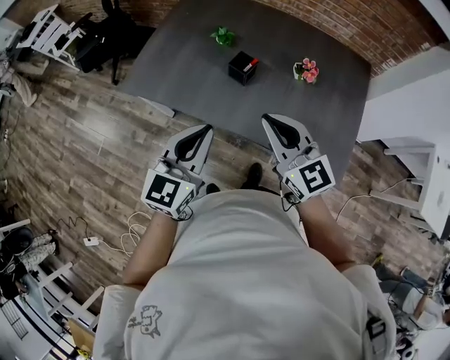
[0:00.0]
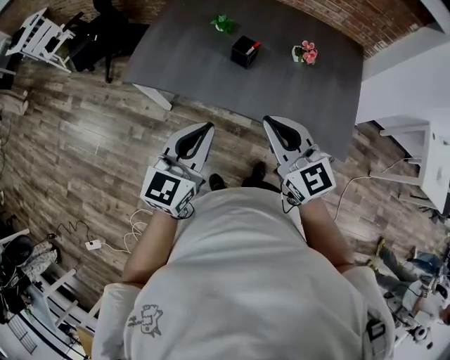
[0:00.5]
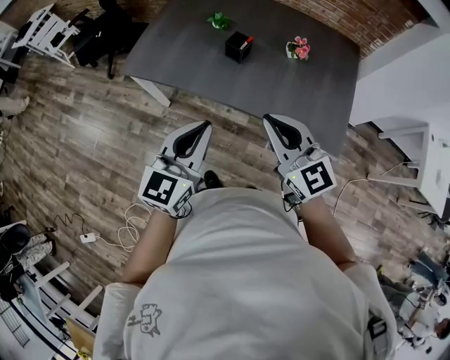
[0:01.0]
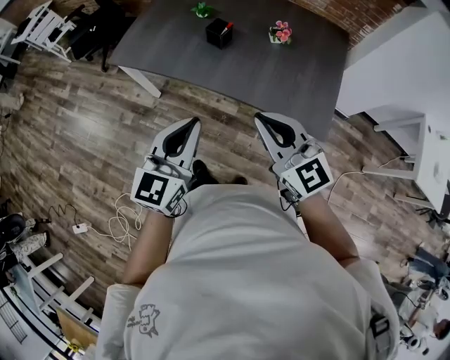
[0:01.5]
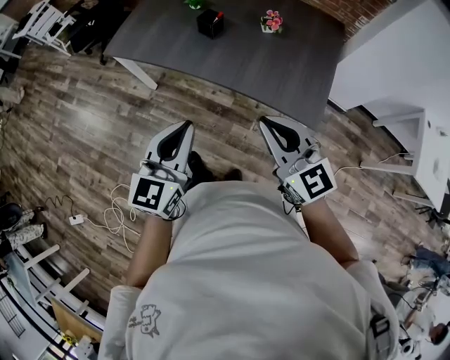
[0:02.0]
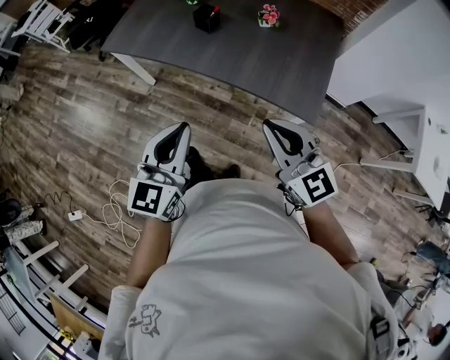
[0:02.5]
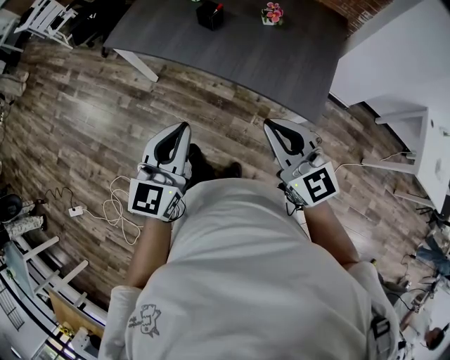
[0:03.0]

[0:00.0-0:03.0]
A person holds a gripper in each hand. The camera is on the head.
0:00.0 to 0:01.5: Both grippers move backward, about 20 cm.
0:01.5 to 0:03.0: The left gripper heads backward, covering some 10 cm; the right gripper shifts about 10 cm backward and to the right.

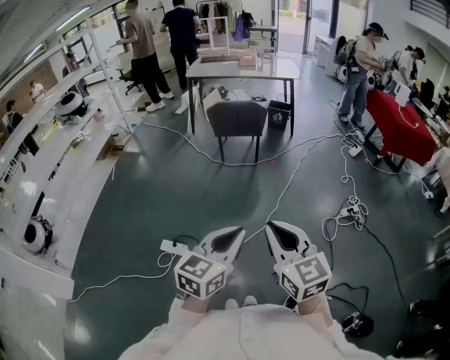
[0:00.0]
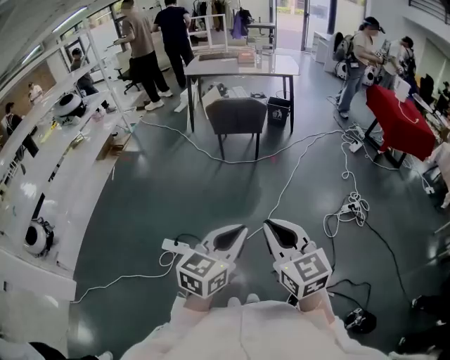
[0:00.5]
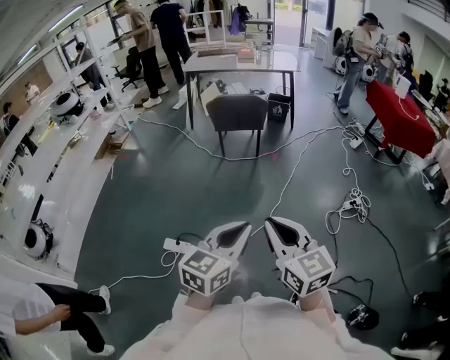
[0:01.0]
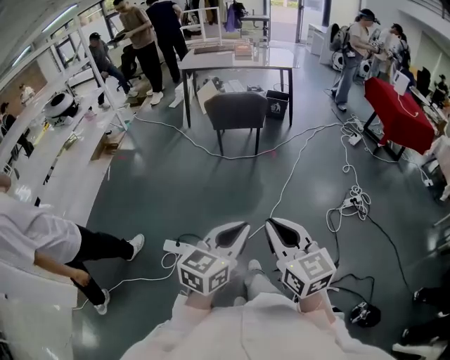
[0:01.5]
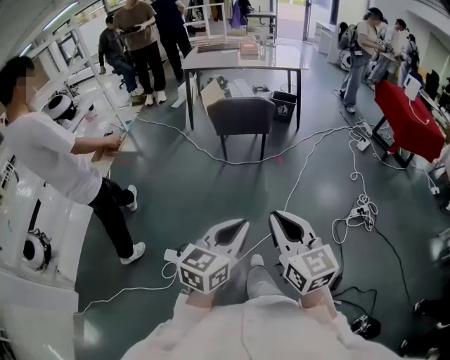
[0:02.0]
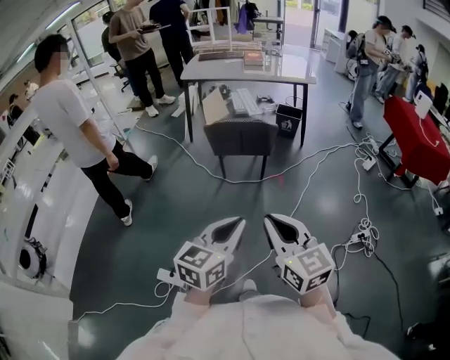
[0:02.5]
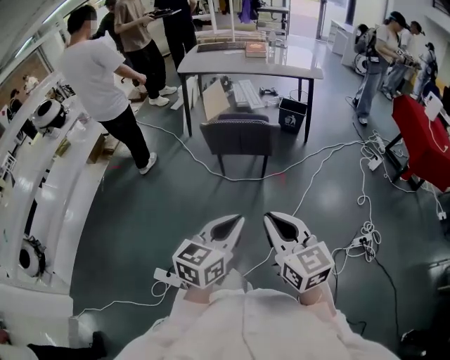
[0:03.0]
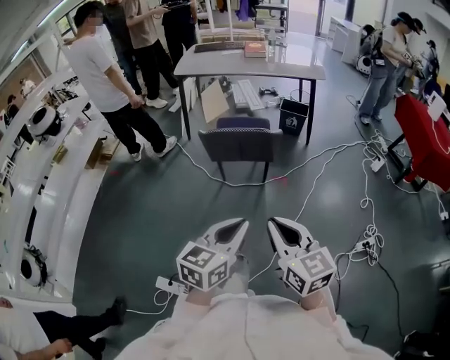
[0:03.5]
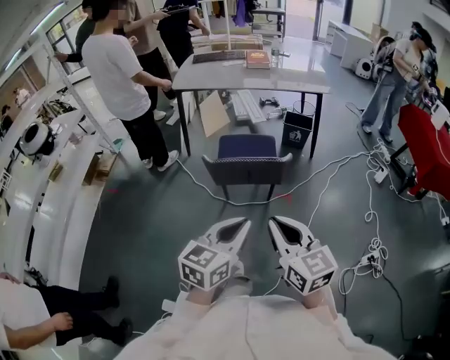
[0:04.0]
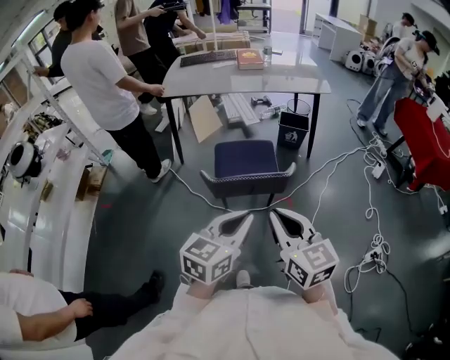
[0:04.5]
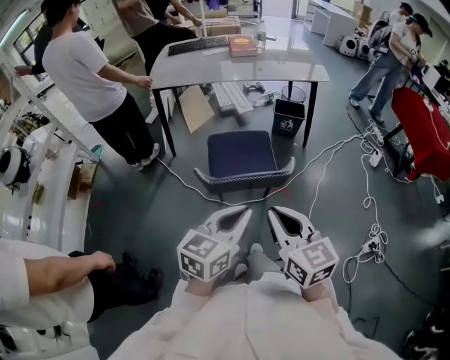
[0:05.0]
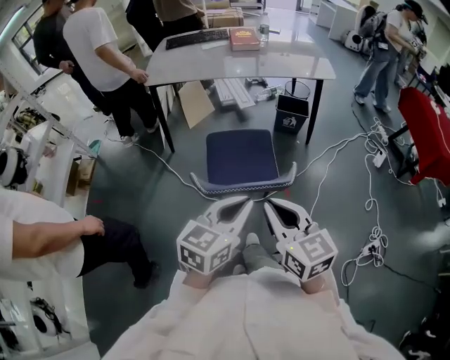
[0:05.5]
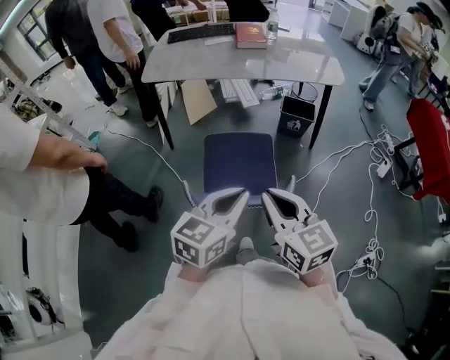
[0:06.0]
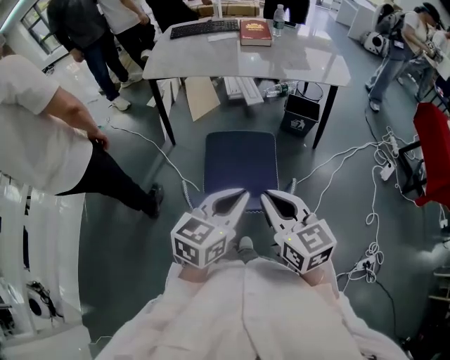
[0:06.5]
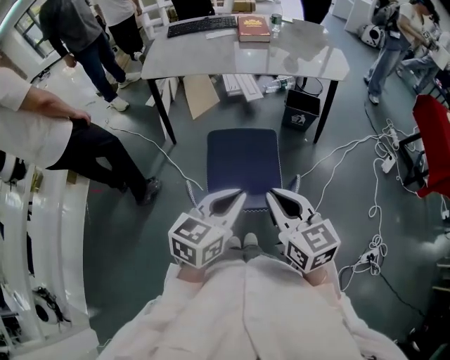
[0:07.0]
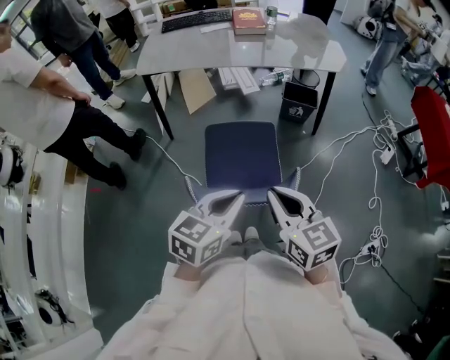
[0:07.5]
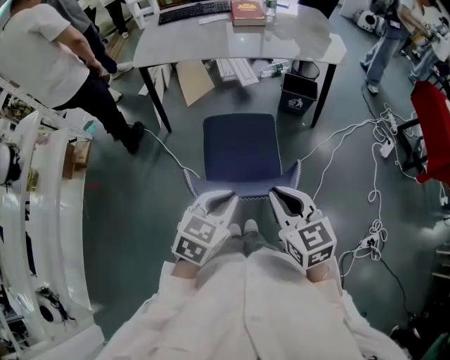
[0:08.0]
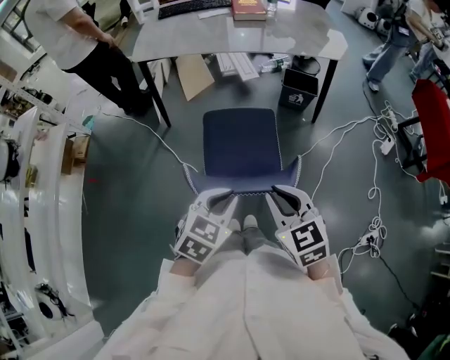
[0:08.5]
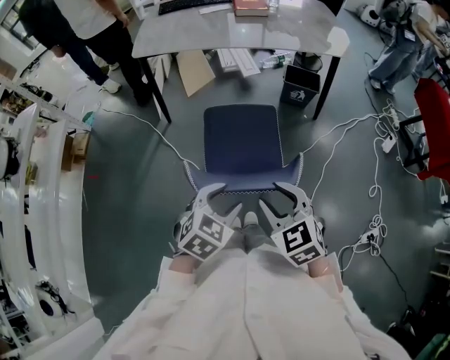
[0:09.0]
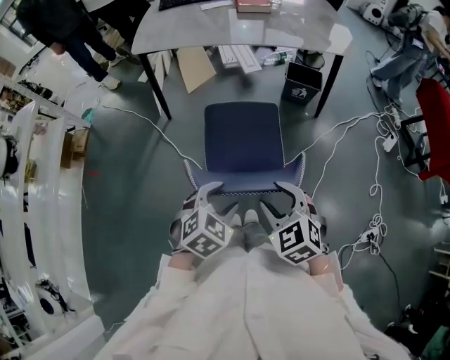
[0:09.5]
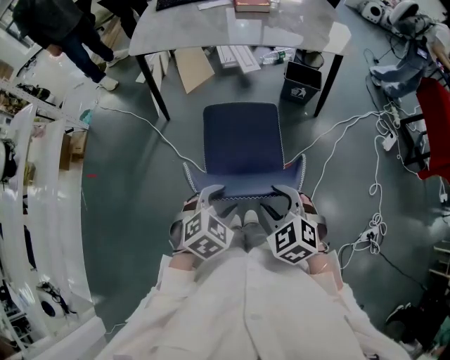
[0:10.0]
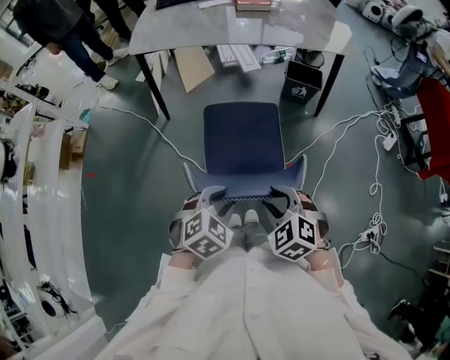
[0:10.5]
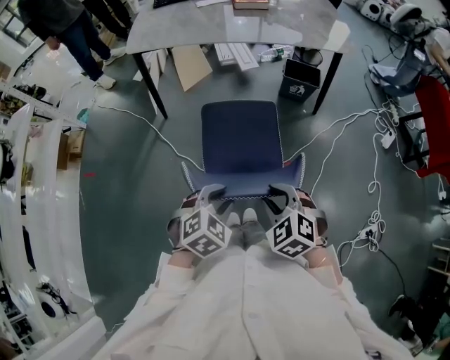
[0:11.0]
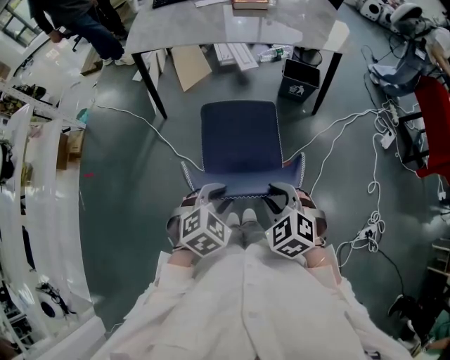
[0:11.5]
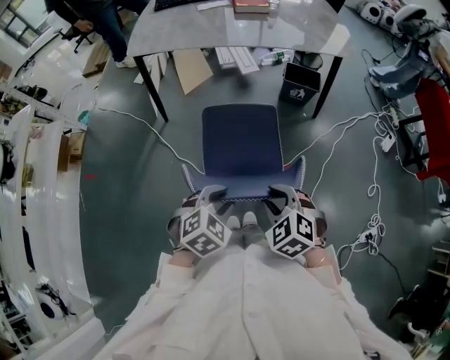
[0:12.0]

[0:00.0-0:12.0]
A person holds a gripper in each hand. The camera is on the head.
0:00.0 to 0:02.0: The two grippers go approximately 15 cm forward.
0:02.0 to 0:04.0: Both grippers are carried forward, roughly 50 cm.
0:04.0 to 0:06.0: The grippers both shift forward by approximately 35 cm.
0:06.0 to 0:08.0: The grippers both shift downward by some 5 cm. The left gripper turns by some 20 degrees.
0:08.0 to 0:10.0: Both grippers move downward, roughly 10 cm. The right gripper swivels approximately 40 degrees, and opens its fingers. Meanwhile the left gripper changes its angle by about 30 degrees, and opens its fingers.
0:10.0 to 0:12.0: The grippers stay close to where they were, moving slightly.

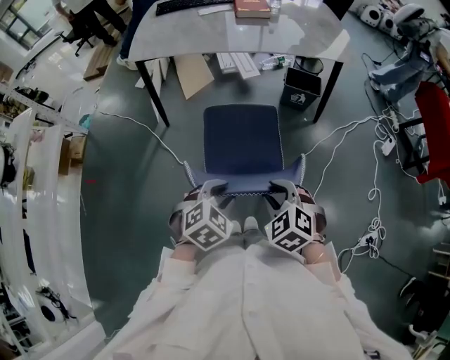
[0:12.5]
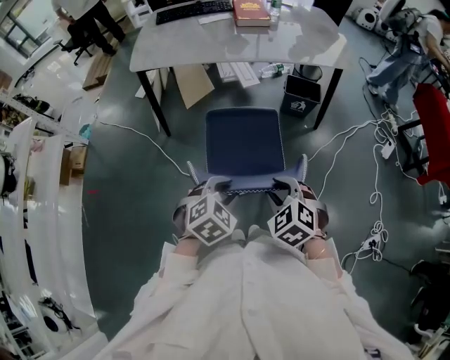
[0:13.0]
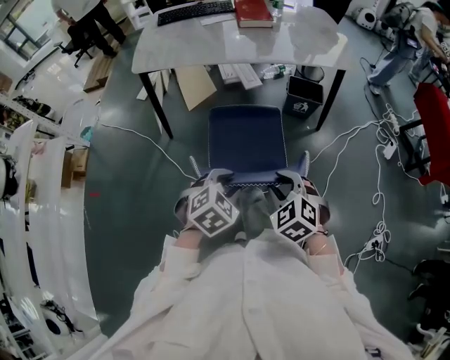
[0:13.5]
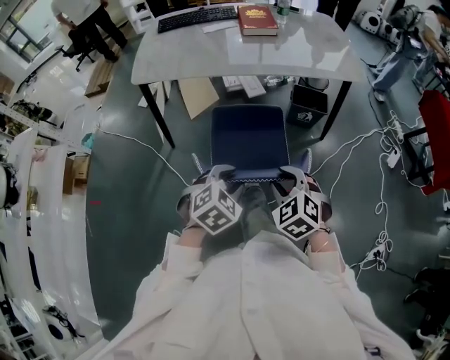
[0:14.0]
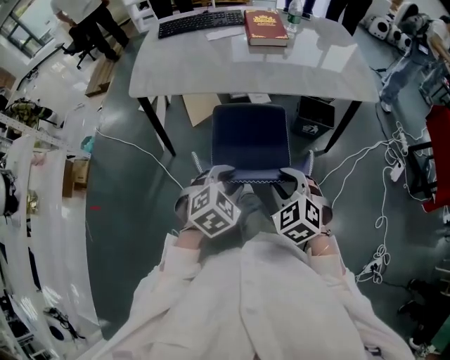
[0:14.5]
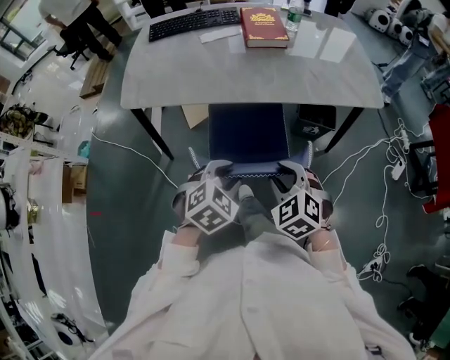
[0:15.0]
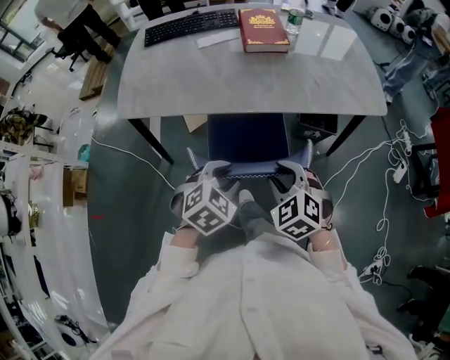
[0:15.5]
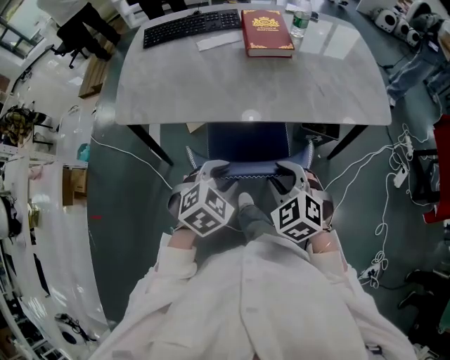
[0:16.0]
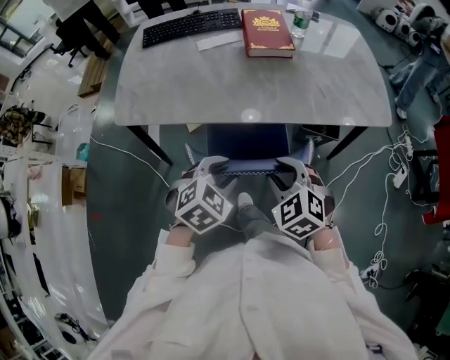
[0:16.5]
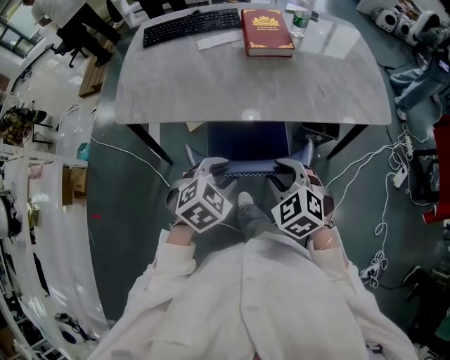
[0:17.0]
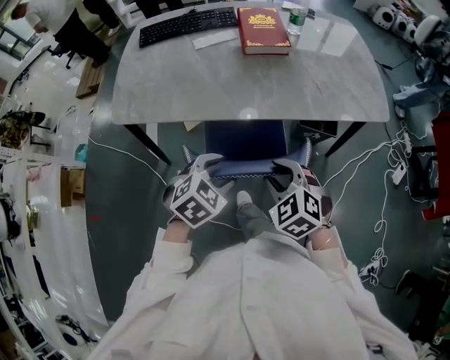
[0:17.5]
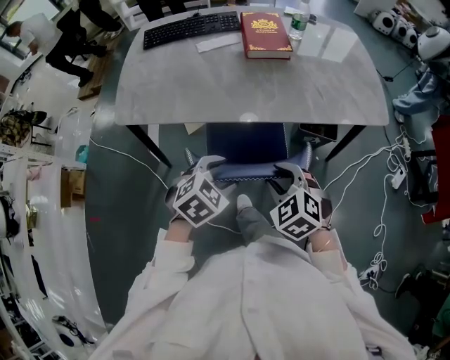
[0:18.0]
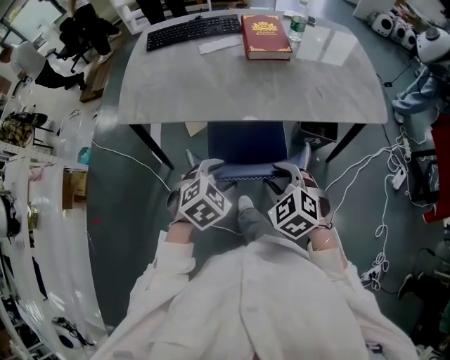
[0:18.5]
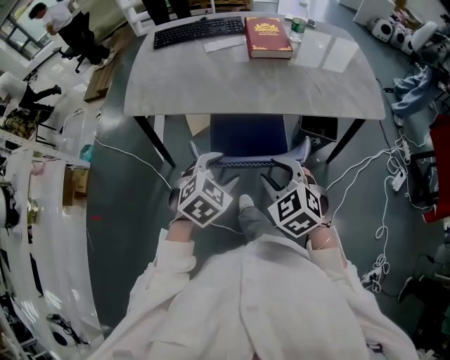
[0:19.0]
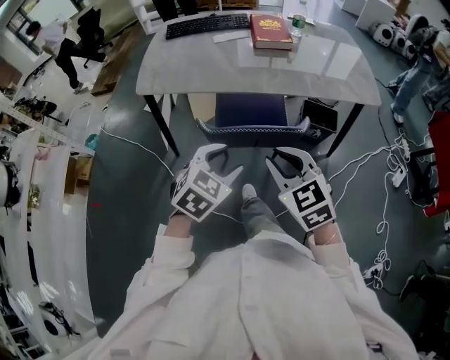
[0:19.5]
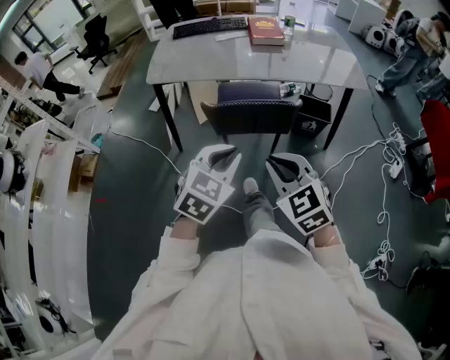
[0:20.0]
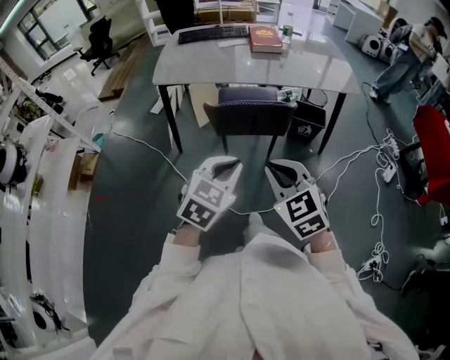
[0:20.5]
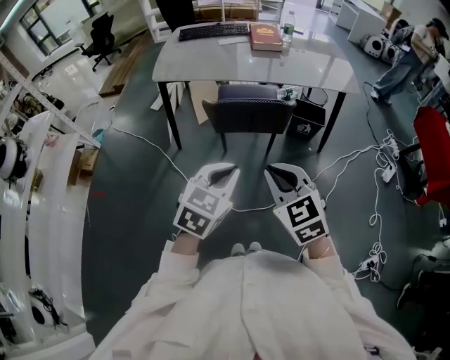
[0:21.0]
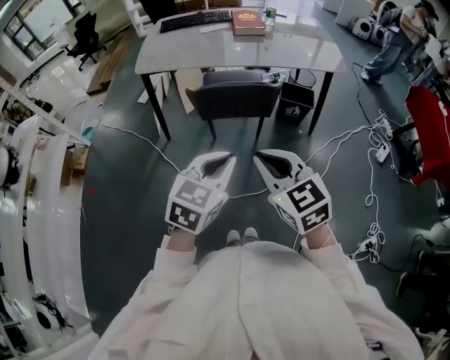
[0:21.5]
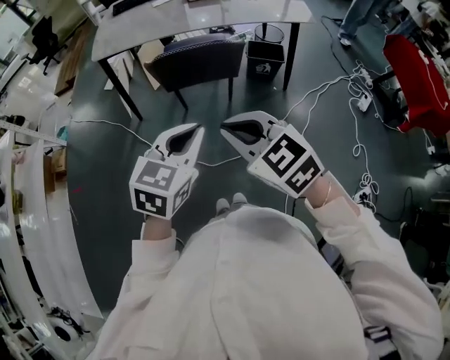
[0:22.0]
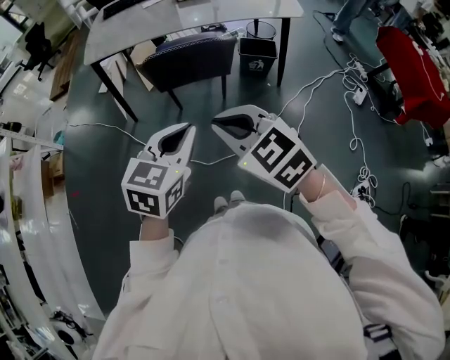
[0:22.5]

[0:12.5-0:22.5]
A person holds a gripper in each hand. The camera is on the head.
0:12.5 to 0:14.5: The grippers both shift forward by some 25 cm.
0:14.5 to 0:16.5: Both grippers travel together forward, approximately 20 cm.
0:16.5 to 0:18.5: The left gripper opens up.
0:18.5 to 0:20.5: Both grippers move backward and upward, approximately 35 cm. The right gripper swivels some 20 degrees, and closes up, while the left gripper changes its angle by approximately 30 degrees, and closes up.
0:20.5 to 0:22.5: The left gripper travels to the right and backward by approximately 10 cm, while the right gripper is displaced backward by approximately 5 cm.

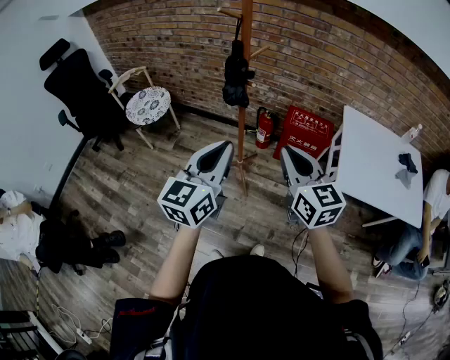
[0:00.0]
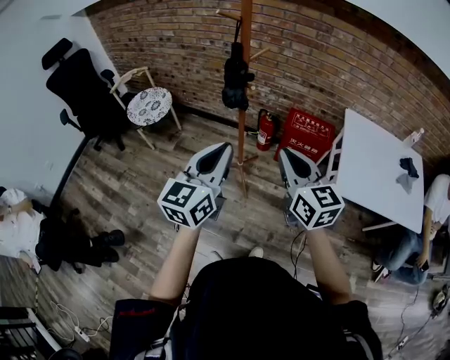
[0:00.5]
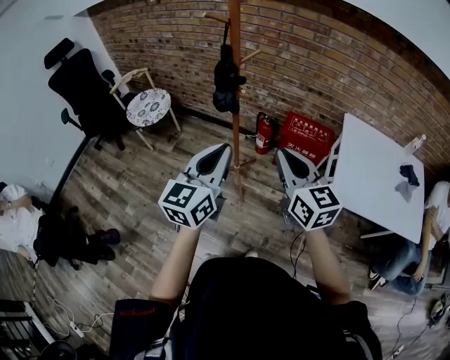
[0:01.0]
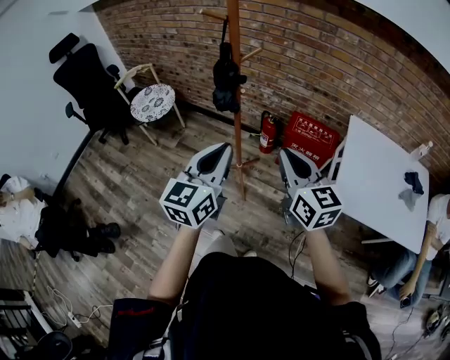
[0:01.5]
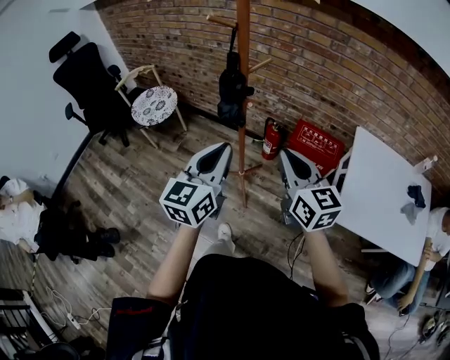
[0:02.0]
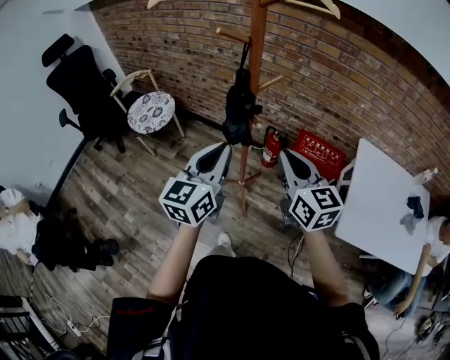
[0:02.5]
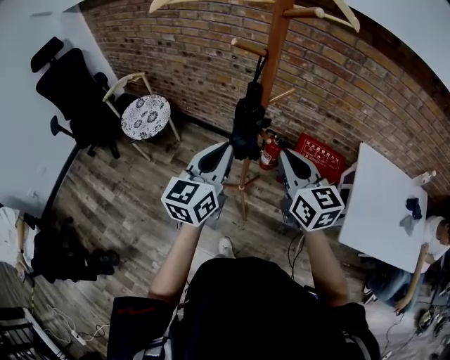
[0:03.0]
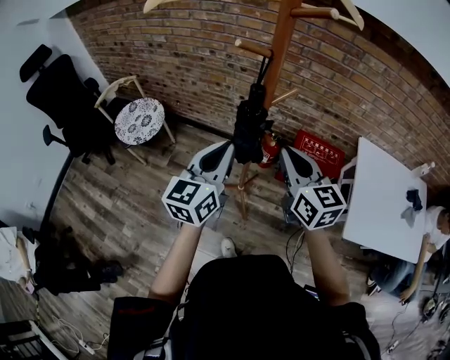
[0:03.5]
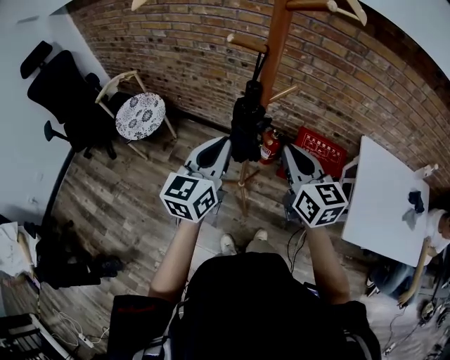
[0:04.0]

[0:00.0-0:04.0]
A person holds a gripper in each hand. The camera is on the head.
0:00.0 to 0:02.0: Both grippers move forward, approximately 10 cm.
0:02.0 to 0:04.0: The grippers both shift forward and to the left by about 15 cm.
